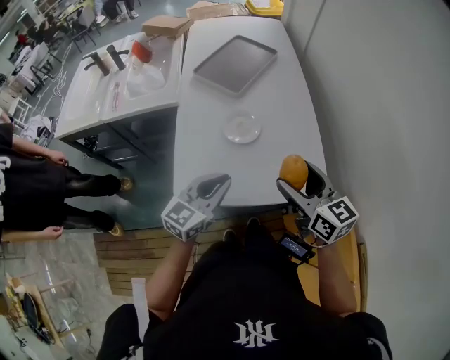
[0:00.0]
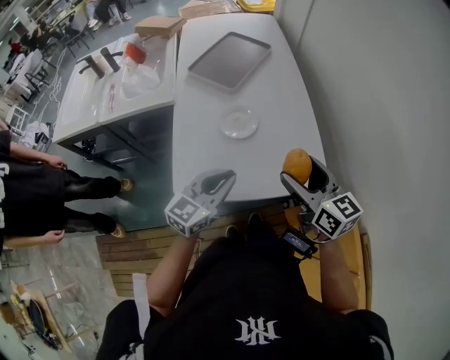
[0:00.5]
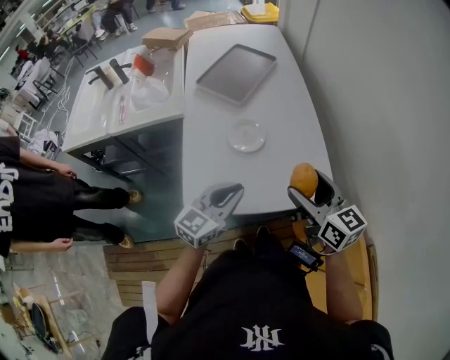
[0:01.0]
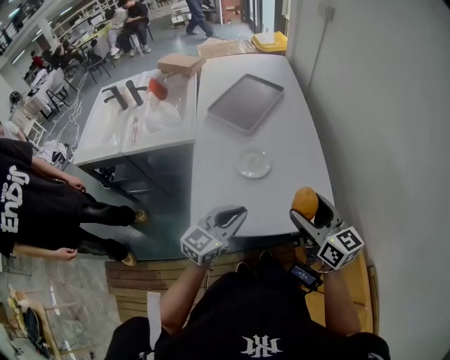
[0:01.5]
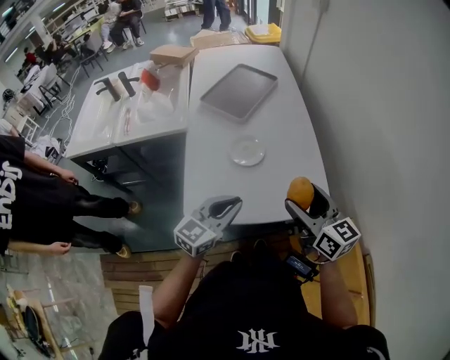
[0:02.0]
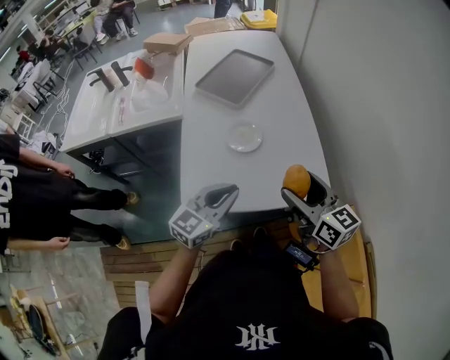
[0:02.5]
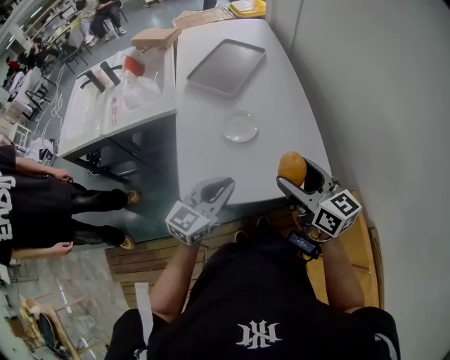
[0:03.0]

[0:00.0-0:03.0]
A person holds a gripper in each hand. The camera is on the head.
0:00.0 to 0:03.0: There are only small adjustments of the grippers.

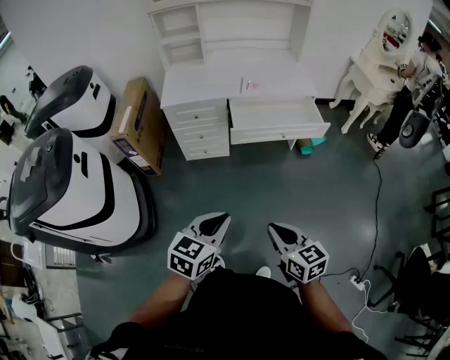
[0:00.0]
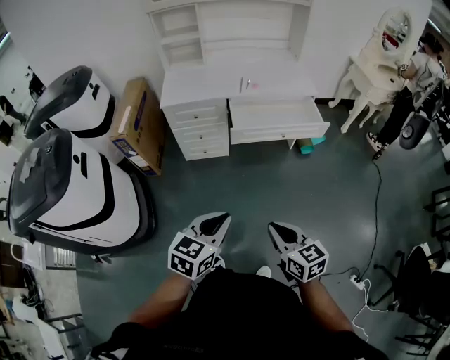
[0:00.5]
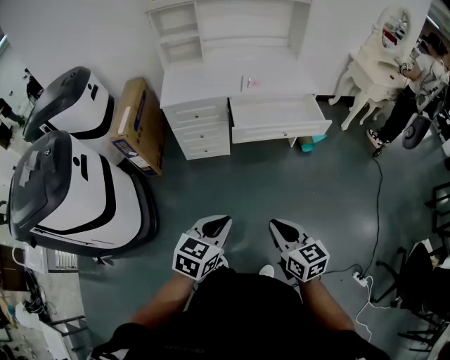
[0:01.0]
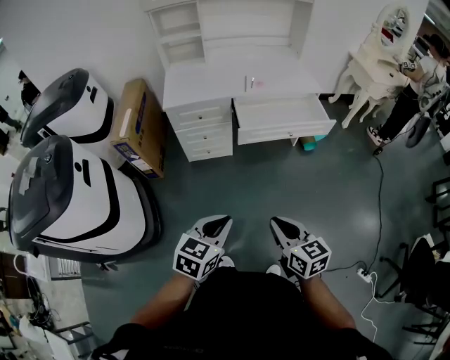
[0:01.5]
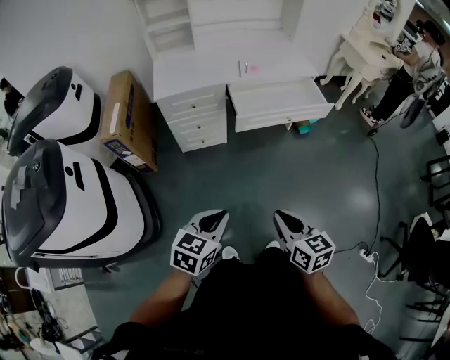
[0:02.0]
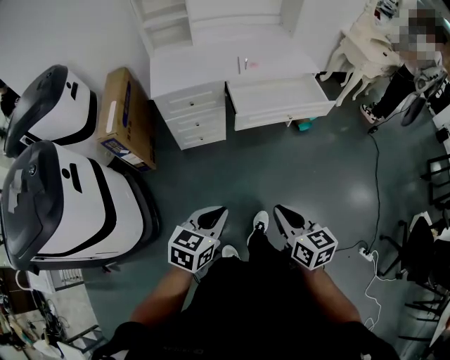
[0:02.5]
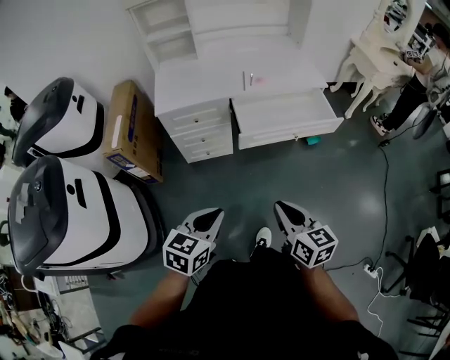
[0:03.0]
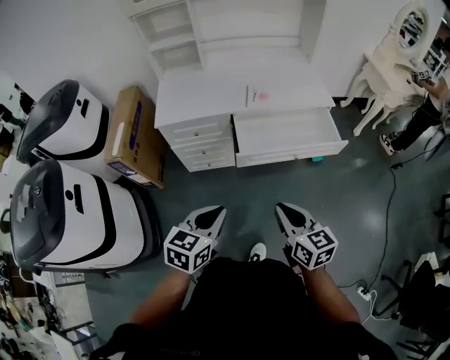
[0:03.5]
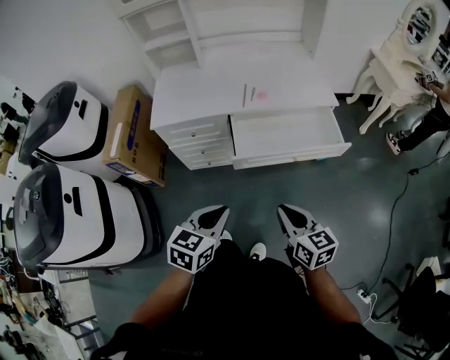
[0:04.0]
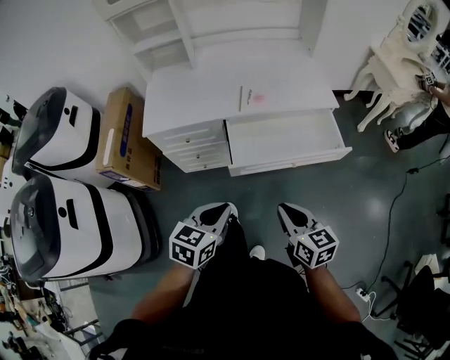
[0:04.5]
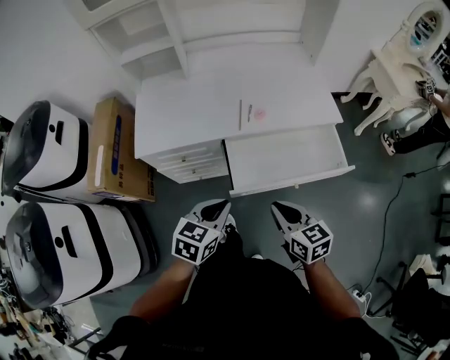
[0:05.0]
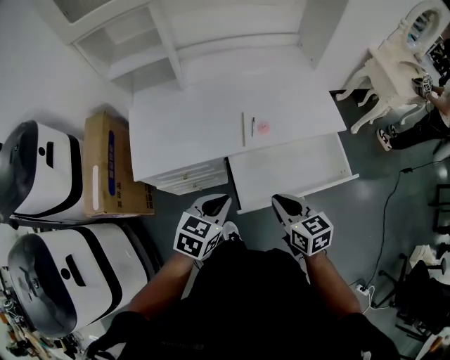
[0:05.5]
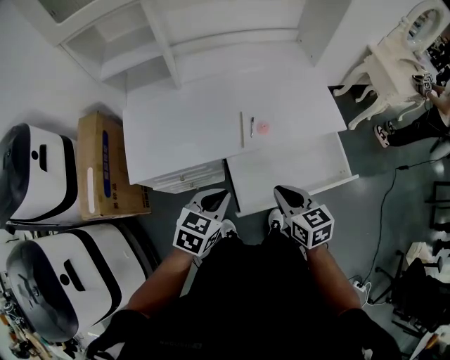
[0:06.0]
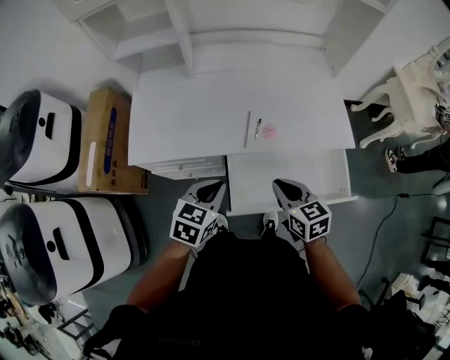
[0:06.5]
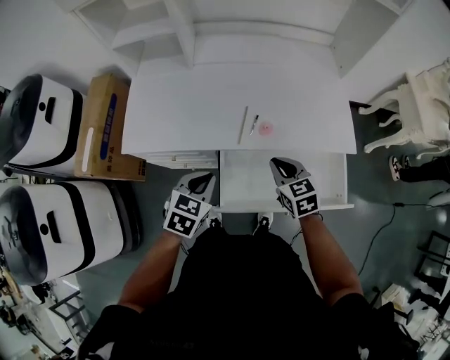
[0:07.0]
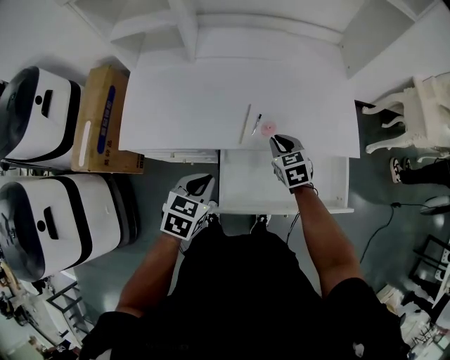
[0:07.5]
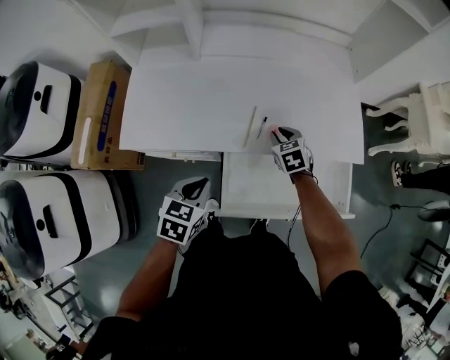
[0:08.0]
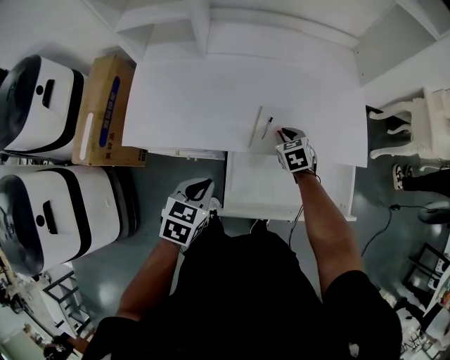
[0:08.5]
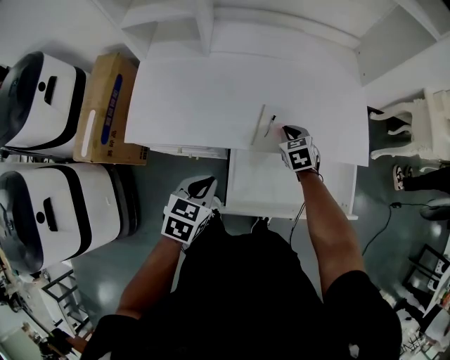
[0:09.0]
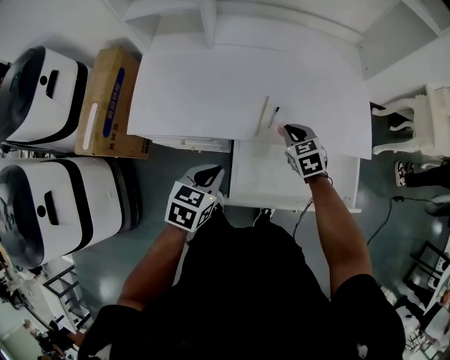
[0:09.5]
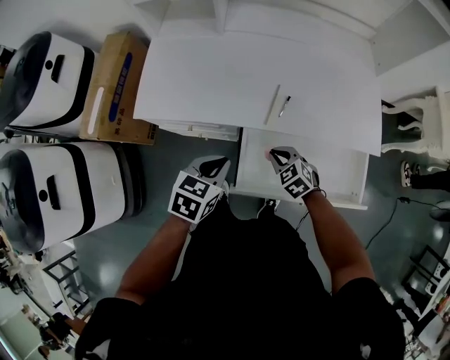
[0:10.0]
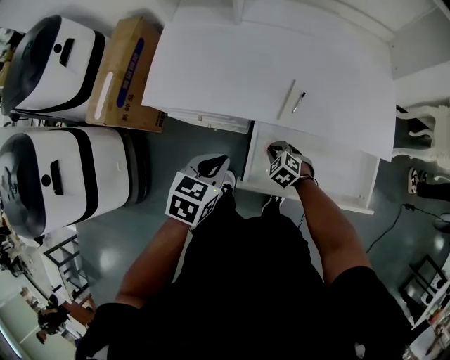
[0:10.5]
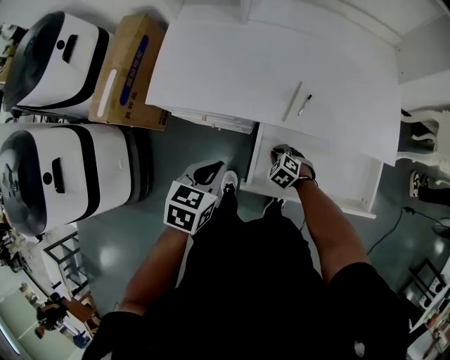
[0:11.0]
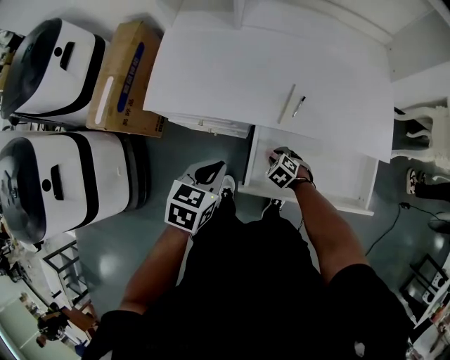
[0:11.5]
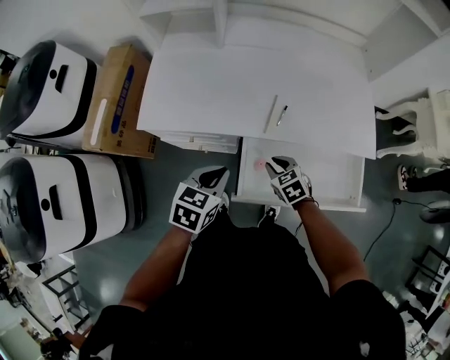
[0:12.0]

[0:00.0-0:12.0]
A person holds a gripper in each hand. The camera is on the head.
0:00.0 to 0:02.0: The right gripper shifts some 10 cm to the left. The left gripper moves to the left and downward, about 10 cm.
0:02.0 to 0:04.0: The grippers both shift forward by about 25 cm.
0:04.0 to 0:06.0: The grippers both shift forward by approximately 30 cm.
0:06.0 to 0:08.0: The right gripper shifts roughly 30 cm forward and downward, and rotates approximately 30 degrees; the left gripper is displaced downward by approximately 5 cm, and turns by roughly 20 degrees.
0:08.0 to 0:10.0: The right gripper travels backward by roughly 15 cm, and swivels about 30 degrees.
0:10.0 to 0:12.0: The right gripper moves roughly 10 cm downward and comes back.

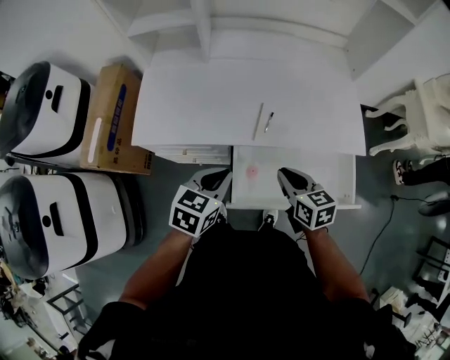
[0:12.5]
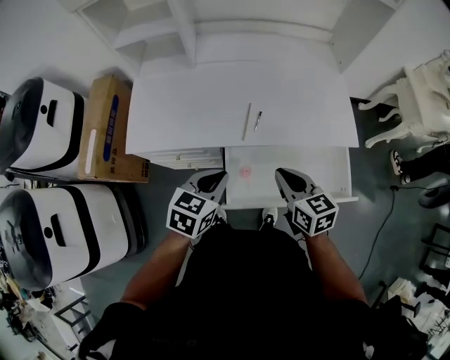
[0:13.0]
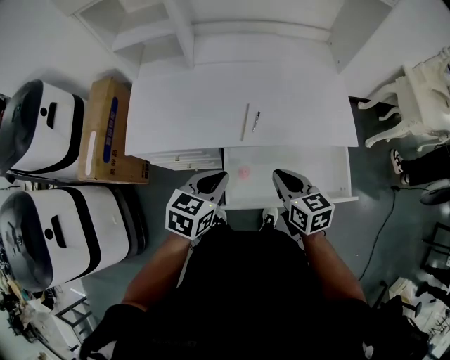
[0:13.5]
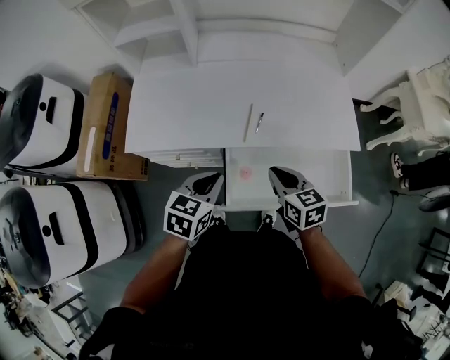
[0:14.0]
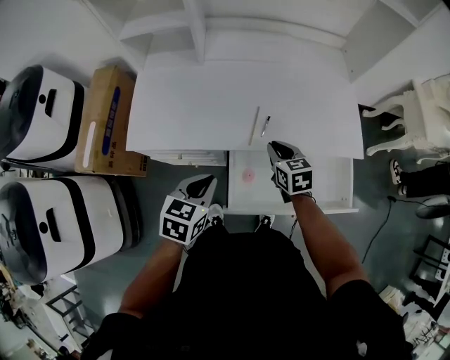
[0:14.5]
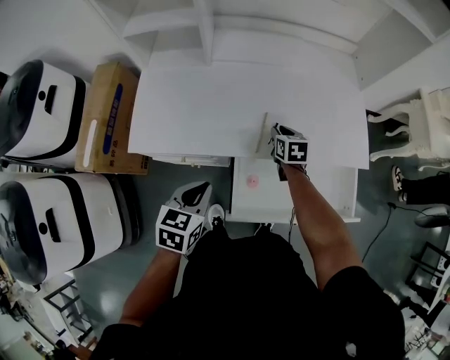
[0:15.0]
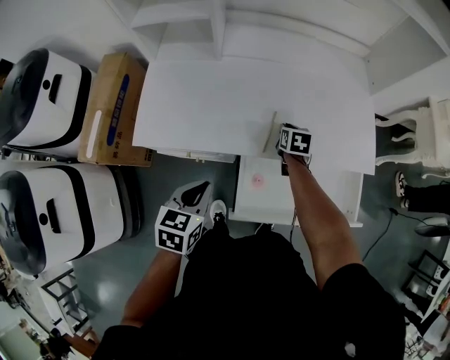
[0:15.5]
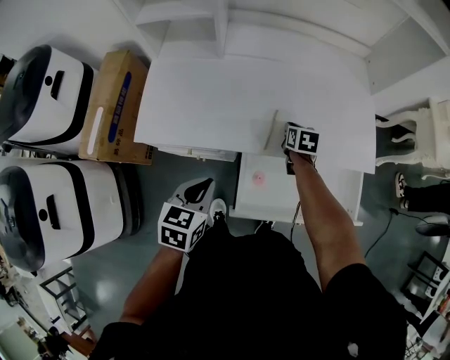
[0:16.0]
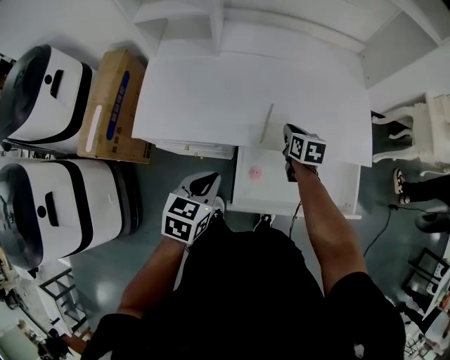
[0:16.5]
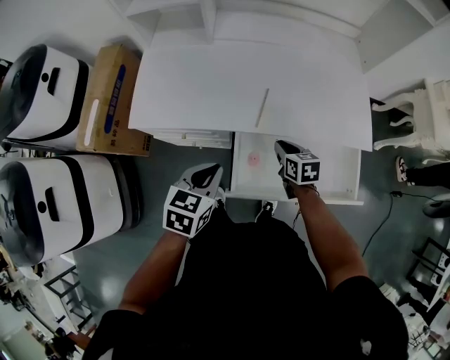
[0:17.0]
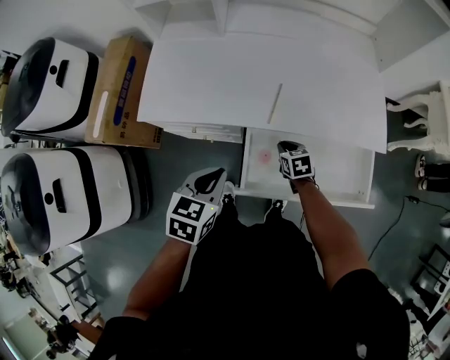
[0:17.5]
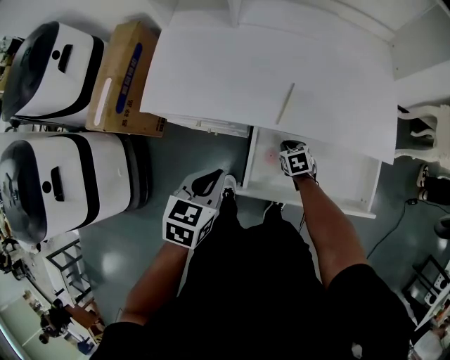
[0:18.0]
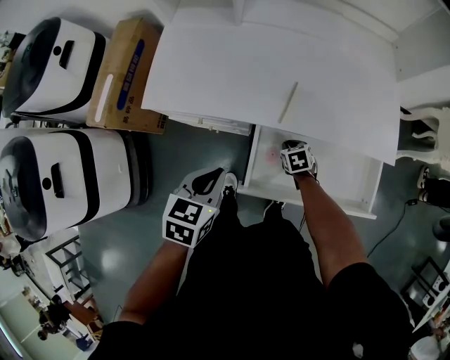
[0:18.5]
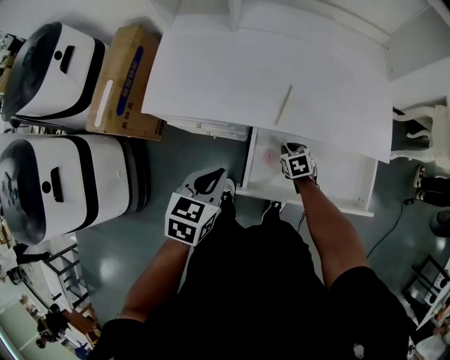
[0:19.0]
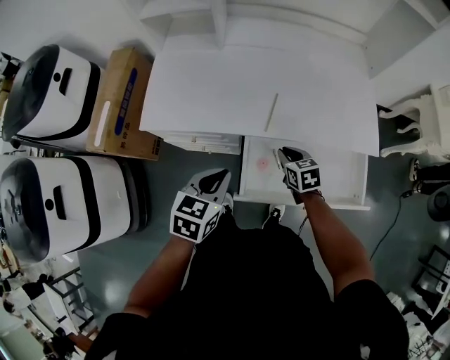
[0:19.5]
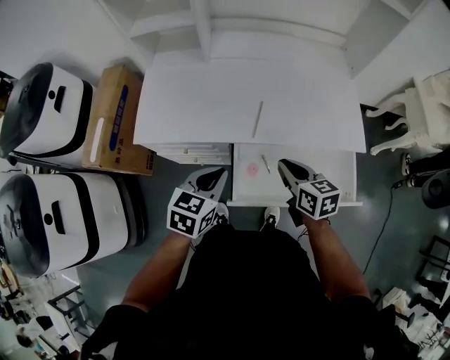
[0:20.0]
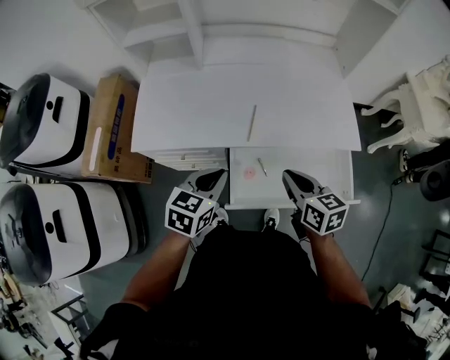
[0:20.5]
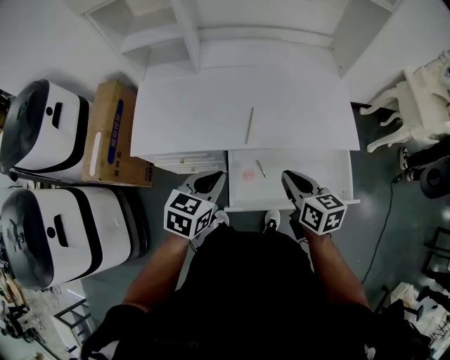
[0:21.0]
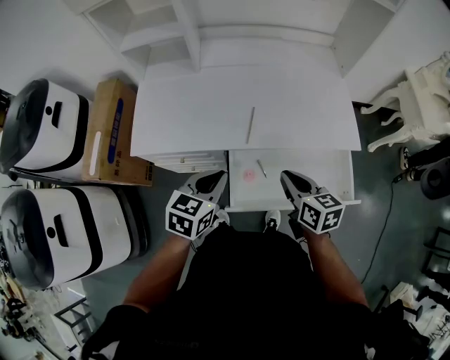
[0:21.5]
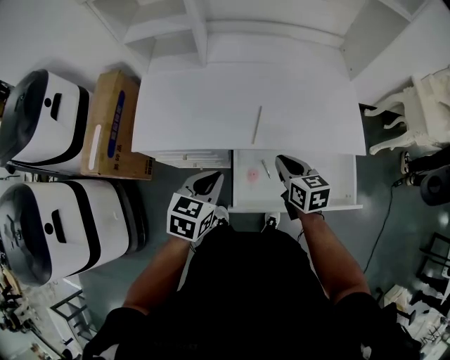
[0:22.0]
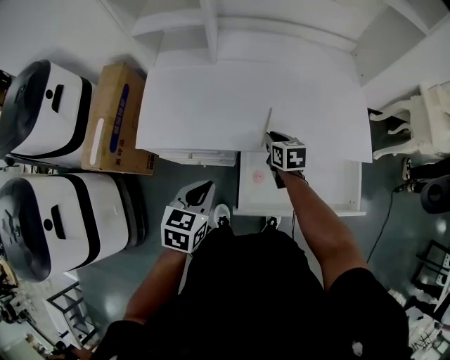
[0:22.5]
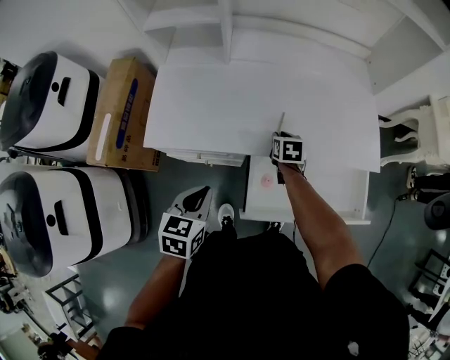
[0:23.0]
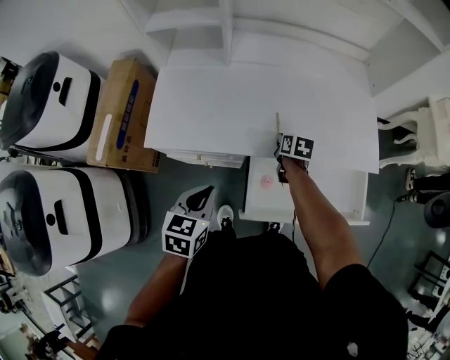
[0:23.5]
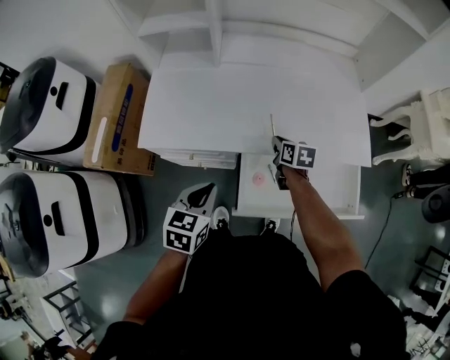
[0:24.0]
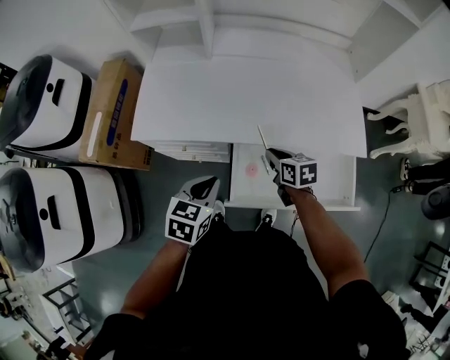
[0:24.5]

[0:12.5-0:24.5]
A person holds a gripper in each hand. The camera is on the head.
0:12.5 to 0:14.5: The right gripper is displaced forward by some 10 cm.
0:14.5 to 0:16.5: The right gripper travels forward by roughly 5 cm.
0:16.5 to 0:18.5: The right gripper is displaced downward and backward by some 20 cm, and changes its angle by roughly 30 degrees.
0:18.5 to 0:20.5: The right gripper moves upward, some 30 cm, and tips its fingers upward by approximately 40 degrees. The left gripper moves to the right, about 5 cm.
0:20.5 to 0:22.5: The right gripper is displaced forward, downward and to the left by roughly 25 cm; the left gripper shifts approximately 5 cm to the left.
0:22.5 to 0:24.5: The right gripper moves backward, about 10 cm.
